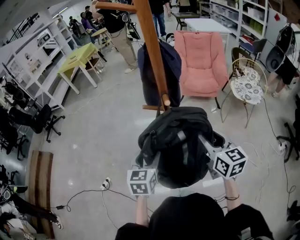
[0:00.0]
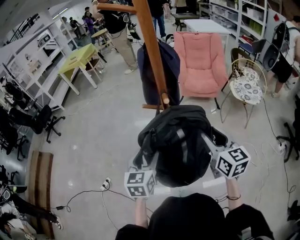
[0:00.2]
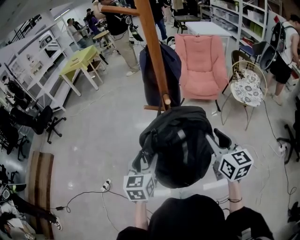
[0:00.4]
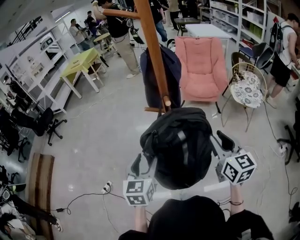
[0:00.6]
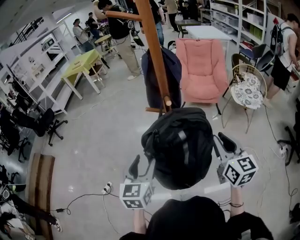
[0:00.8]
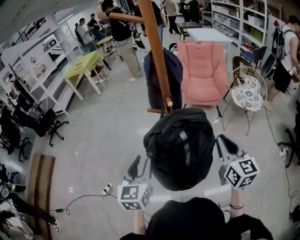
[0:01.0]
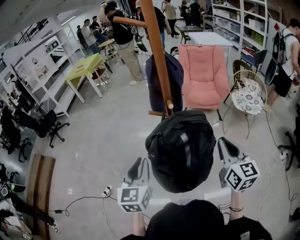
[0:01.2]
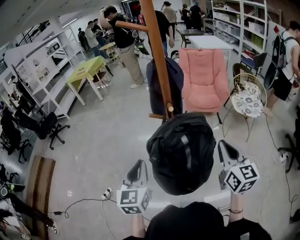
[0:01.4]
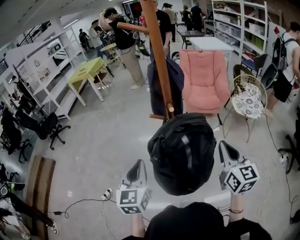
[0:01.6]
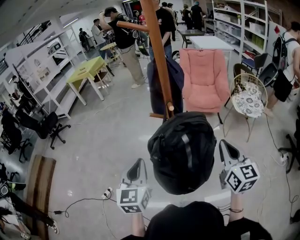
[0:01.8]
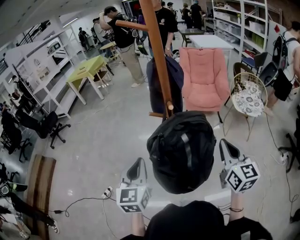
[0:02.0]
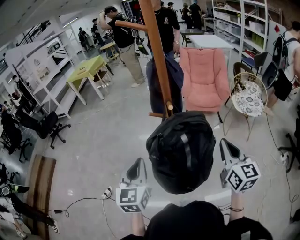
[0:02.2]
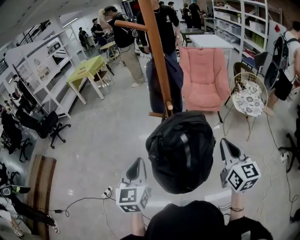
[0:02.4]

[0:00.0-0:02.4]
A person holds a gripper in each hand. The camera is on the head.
0.0 to 1.2 s: The left gripper heads upward and backward, covering approximately 10 cm, and closes up. The right gripper is displaced backward by about 5 cm, and closes its fingers.
1.2 to 2.4 s: The grippers stay close to where they were, moving slightly.

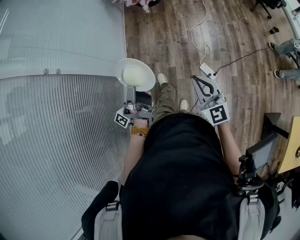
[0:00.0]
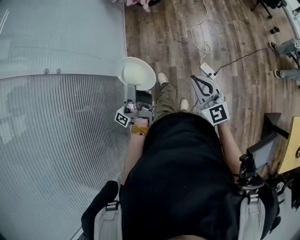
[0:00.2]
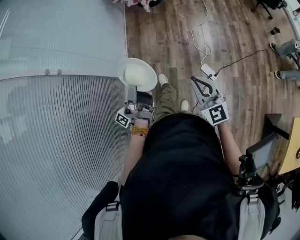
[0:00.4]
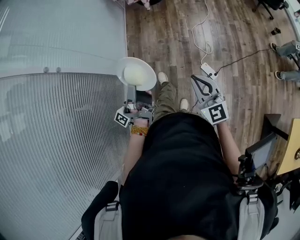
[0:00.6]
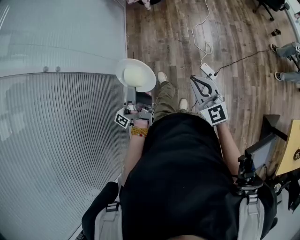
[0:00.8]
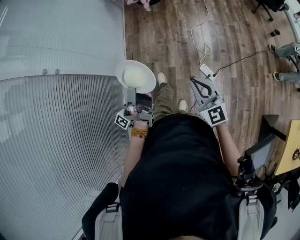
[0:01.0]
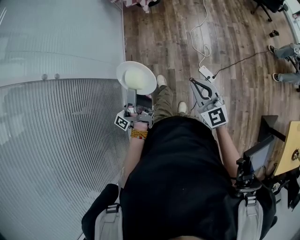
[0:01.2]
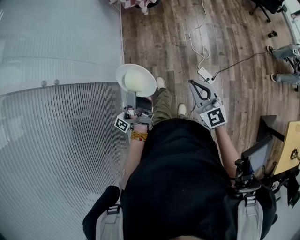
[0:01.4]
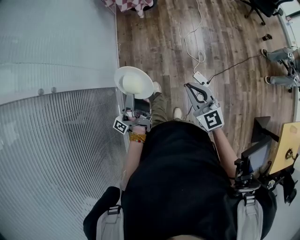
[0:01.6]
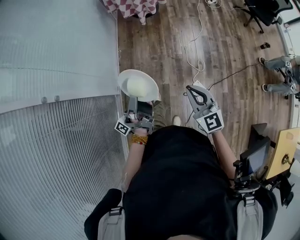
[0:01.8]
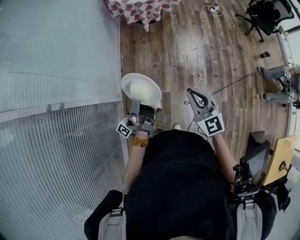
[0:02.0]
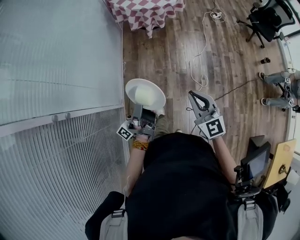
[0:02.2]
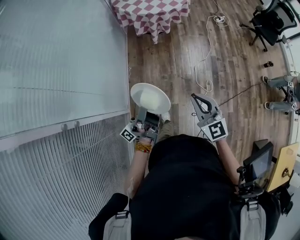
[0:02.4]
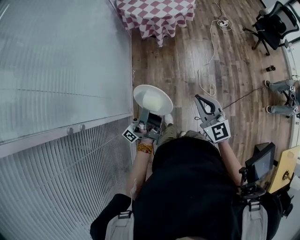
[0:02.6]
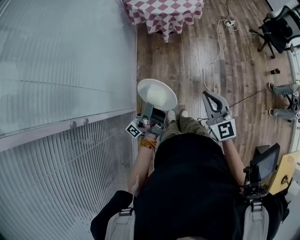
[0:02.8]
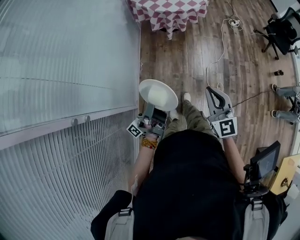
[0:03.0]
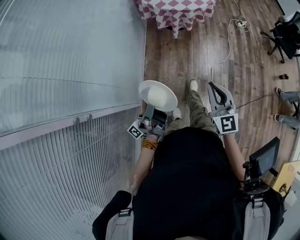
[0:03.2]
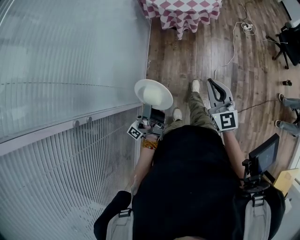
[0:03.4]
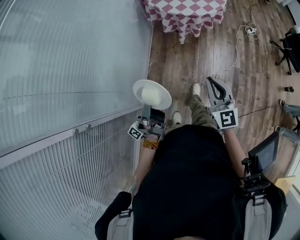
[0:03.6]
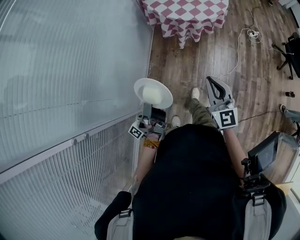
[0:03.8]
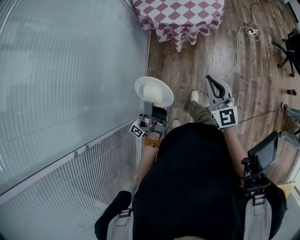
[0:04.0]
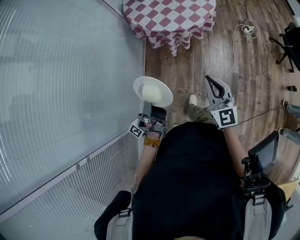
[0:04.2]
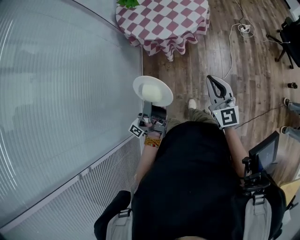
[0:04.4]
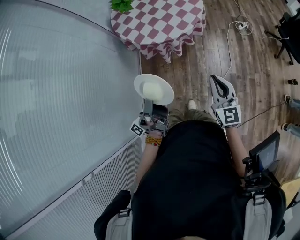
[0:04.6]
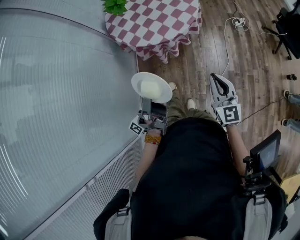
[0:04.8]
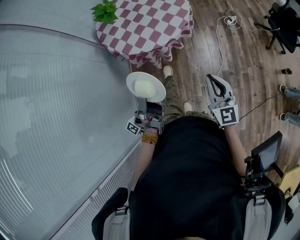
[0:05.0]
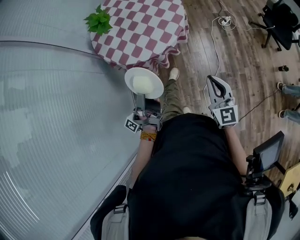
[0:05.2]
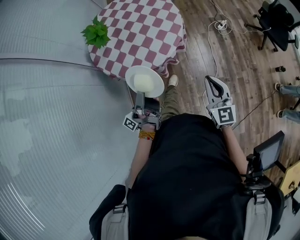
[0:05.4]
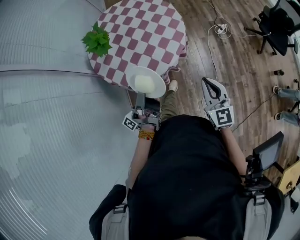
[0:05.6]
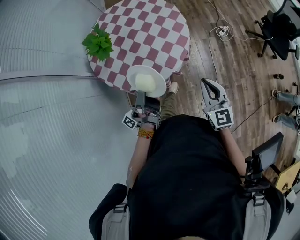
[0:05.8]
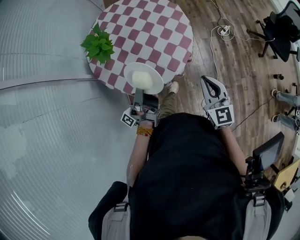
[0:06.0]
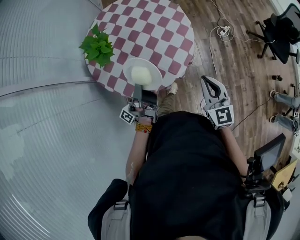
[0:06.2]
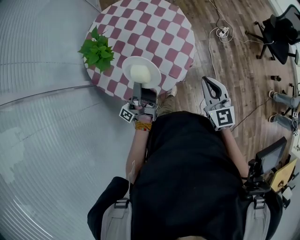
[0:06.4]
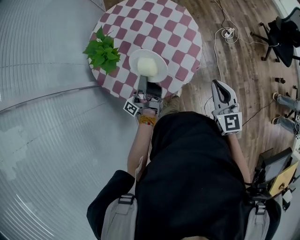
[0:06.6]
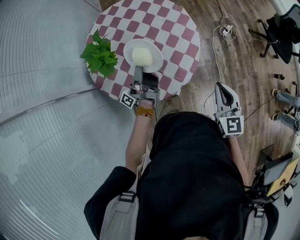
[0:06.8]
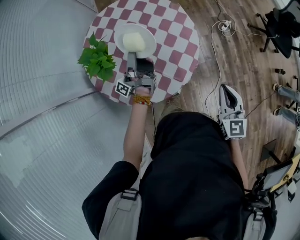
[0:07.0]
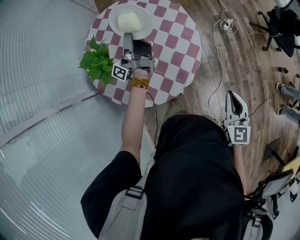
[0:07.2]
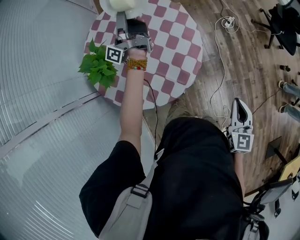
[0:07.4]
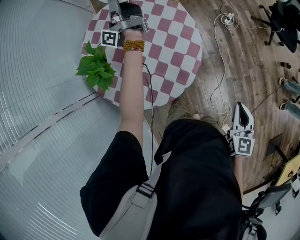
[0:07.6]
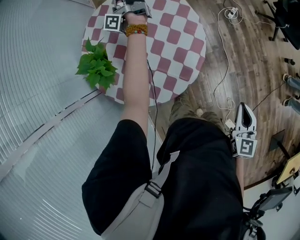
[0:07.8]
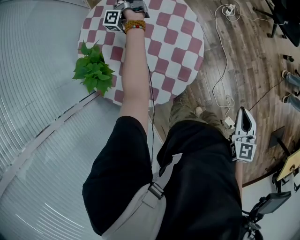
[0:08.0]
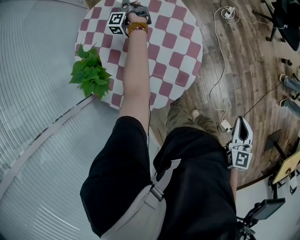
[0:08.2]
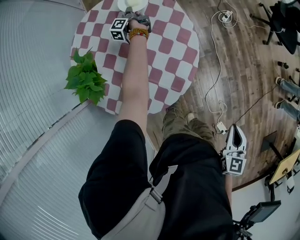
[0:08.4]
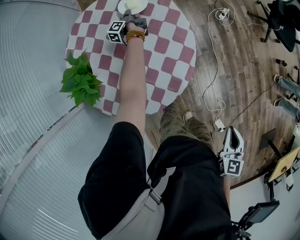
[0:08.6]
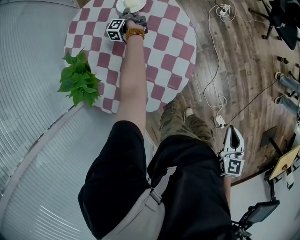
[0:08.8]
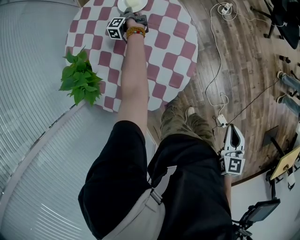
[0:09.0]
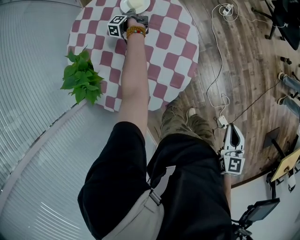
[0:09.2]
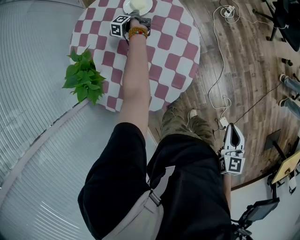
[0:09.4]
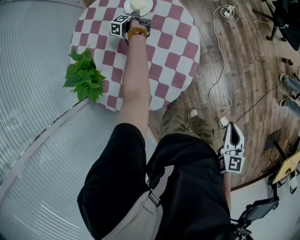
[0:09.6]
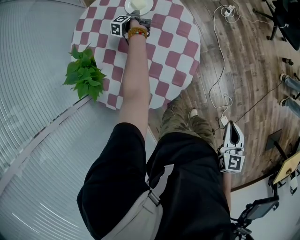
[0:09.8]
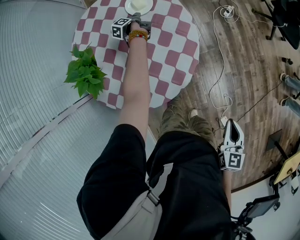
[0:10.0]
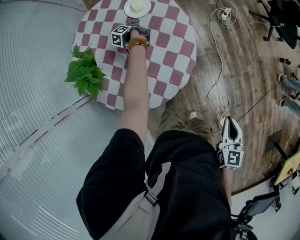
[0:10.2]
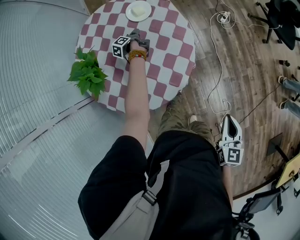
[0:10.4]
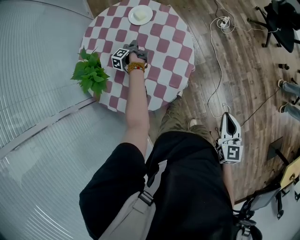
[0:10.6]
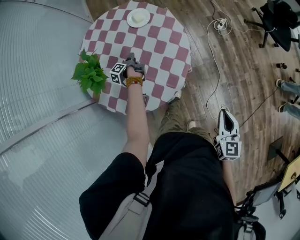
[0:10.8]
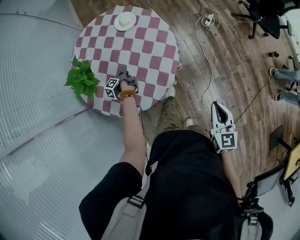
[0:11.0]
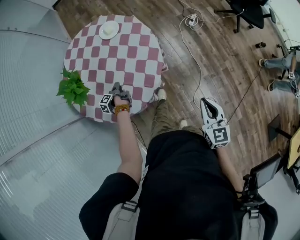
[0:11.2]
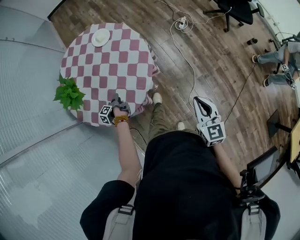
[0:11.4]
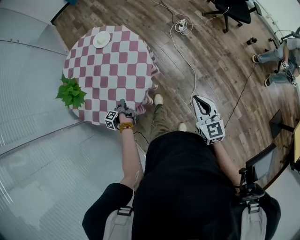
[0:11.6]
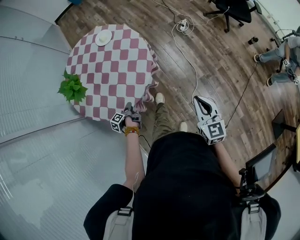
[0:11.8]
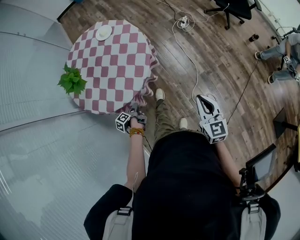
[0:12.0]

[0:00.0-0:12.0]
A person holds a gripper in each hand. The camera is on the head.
0.0 to 1.6 s: The right gripper changes place by some 15 cm.
1.6 to 3.0 s: The right gripper changes place by approximately 25 cm.
3.0 to 4.4 s: The right gripper shifts by roughly 40 cm.
4.4 to 6.0 s: The right gripper shifts by approximately 35 cm.
6.0 to 7.6 s: The right gripper shifts by roughly 10 cm, and rotates about 30 degrees.
7.6 to 9.0 s: The right gripper shifts by roughly 5 cm.
10.4 to 12.0 s: The right gripper changes place by roughly 20 cm.

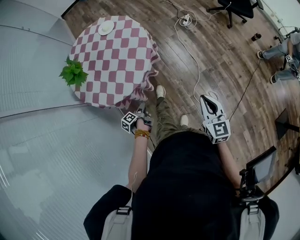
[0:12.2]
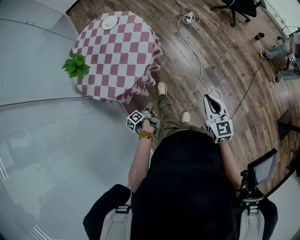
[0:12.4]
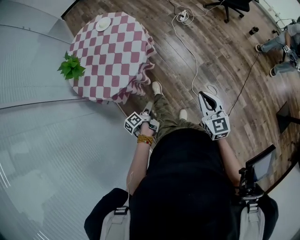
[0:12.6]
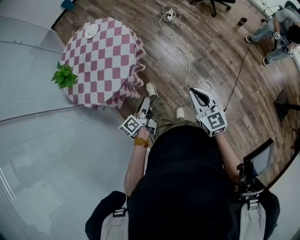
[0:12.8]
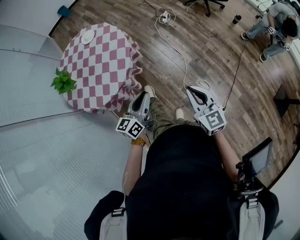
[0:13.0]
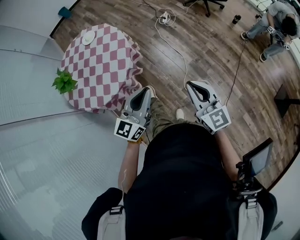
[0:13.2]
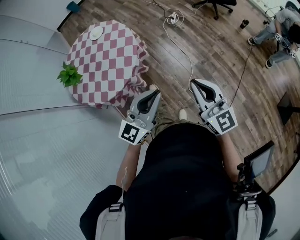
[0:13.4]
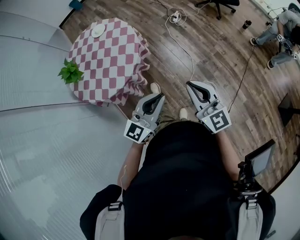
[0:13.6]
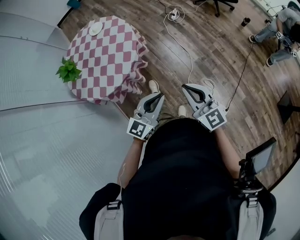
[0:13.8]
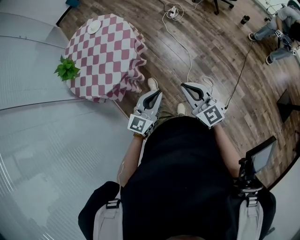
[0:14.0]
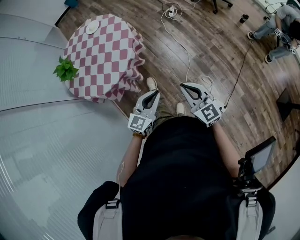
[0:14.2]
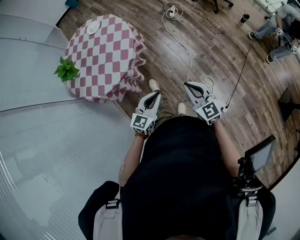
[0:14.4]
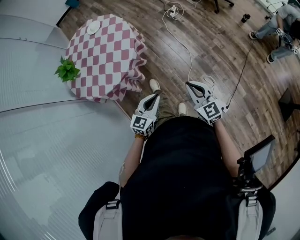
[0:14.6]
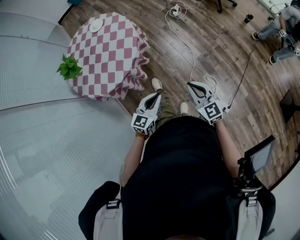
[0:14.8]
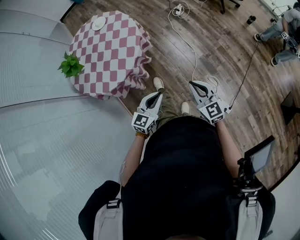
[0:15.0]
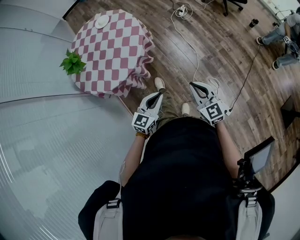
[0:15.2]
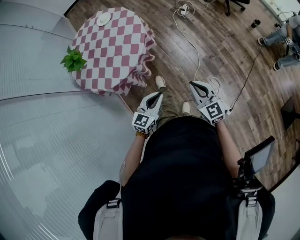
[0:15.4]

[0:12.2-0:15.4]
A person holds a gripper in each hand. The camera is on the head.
12.2 to 13.8 s: The right gripper ends up approximately 10 cm from where it was, and changes its angle by about 20 degrees.
13.8 to 15.4 s: The right gripper is displaced downward by roughly 10 cm.

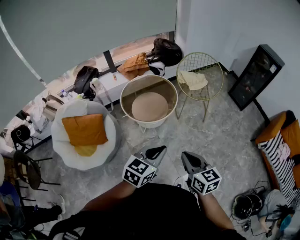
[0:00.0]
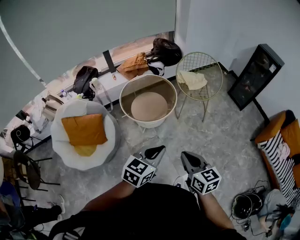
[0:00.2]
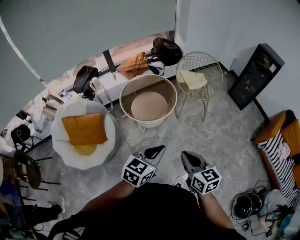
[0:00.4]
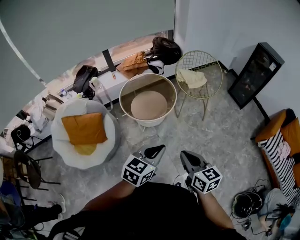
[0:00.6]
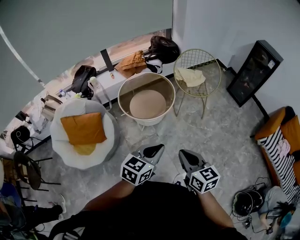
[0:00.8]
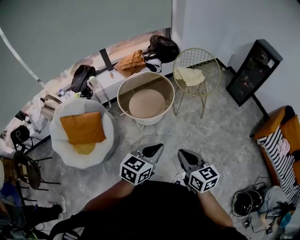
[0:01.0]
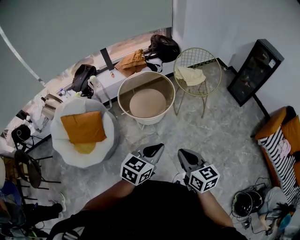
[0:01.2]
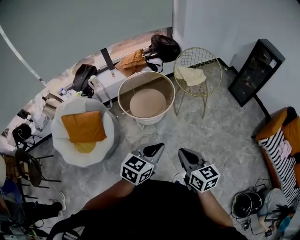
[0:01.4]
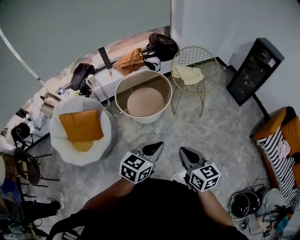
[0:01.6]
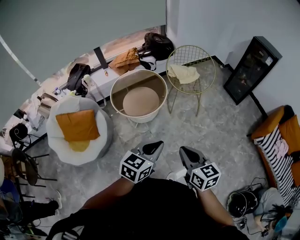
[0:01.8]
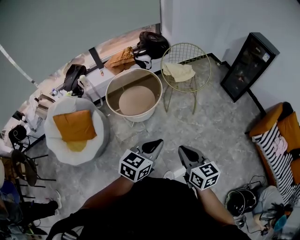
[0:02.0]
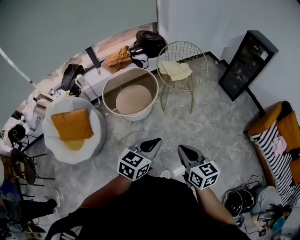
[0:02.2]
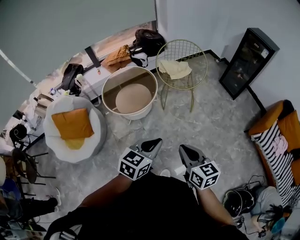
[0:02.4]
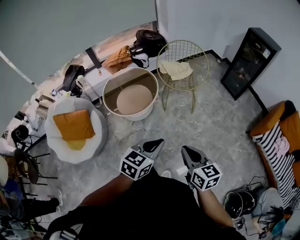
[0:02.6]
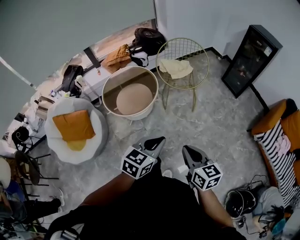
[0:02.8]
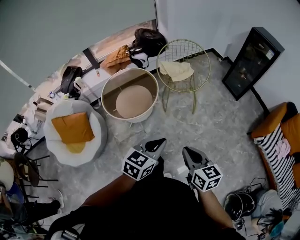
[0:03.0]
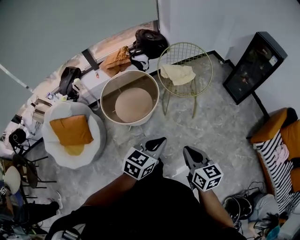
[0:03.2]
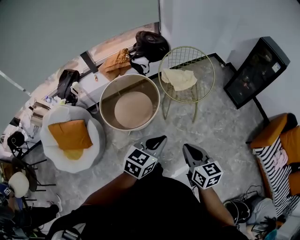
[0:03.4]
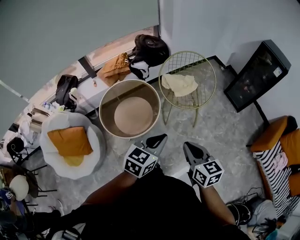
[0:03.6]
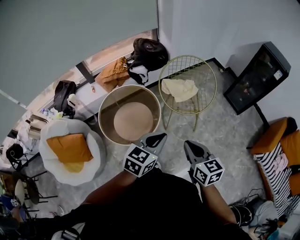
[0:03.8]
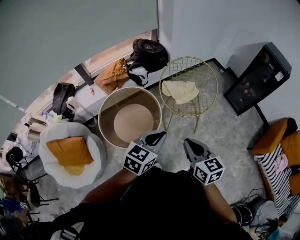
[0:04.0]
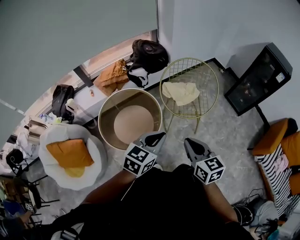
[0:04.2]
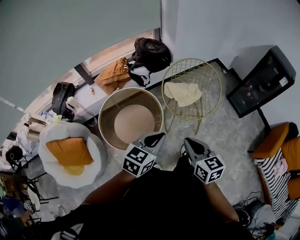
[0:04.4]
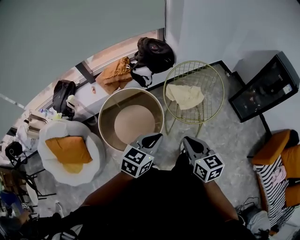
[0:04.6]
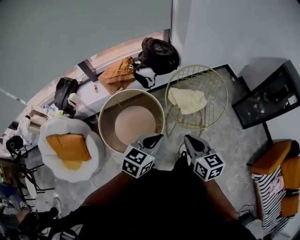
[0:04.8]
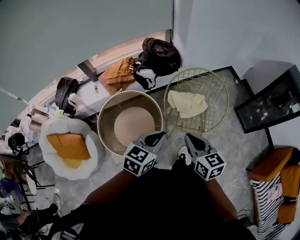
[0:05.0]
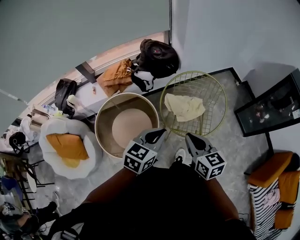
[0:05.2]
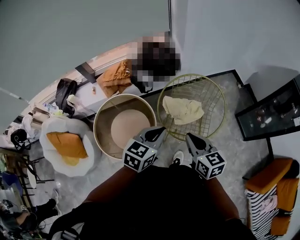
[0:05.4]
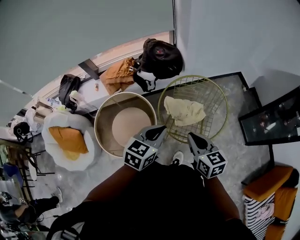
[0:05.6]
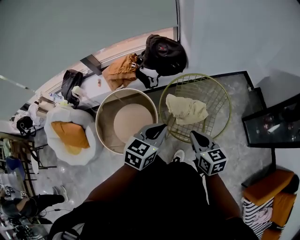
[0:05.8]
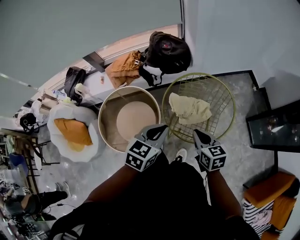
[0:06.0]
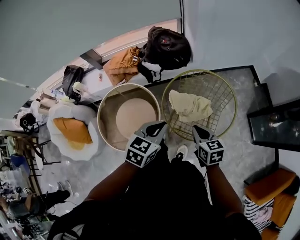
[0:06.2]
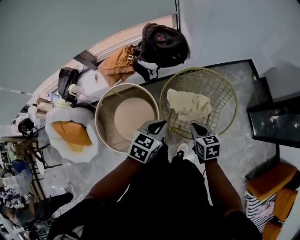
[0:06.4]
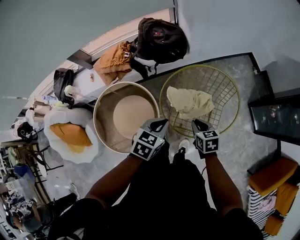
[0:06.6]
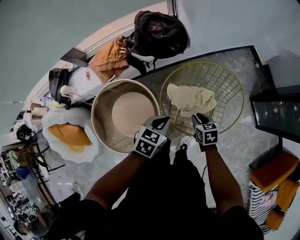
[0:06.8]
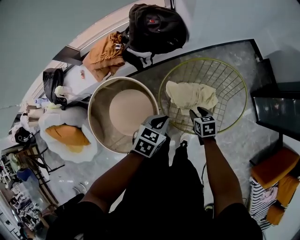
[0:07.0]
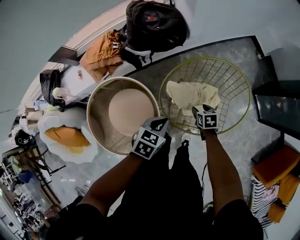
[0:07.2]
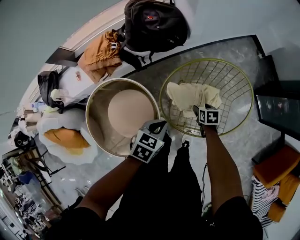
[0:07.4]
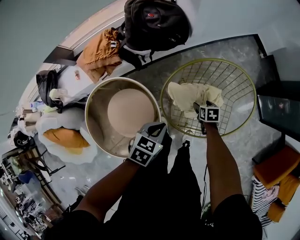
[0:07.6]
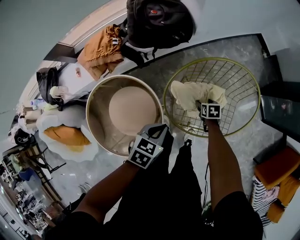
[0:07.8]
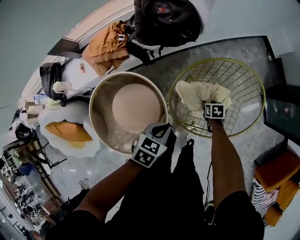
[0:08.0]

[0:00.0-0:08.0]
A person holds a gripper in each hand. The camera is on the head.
0.0 to 1.6 s: The two grippers go some 5 cm to the right.
1.6 to 3.2 s: Both grippers travel together forward and to the right, roughly 20 cm.
3.2 to 4.8 s: The grippers both shift forward by roughly 35 cm.
4.8 to 6.4 s: The right gripper is displaced forward, downward and to the right by roughly 30 cm, and swivels roughly 20 degrees, while the left gripper heads forward and to the right, covering roughly 25 cm.
6.4 to 8.0 s: The left gripper is displaced downward and to the left by approximately 20 cm. The right gripper heads downward, covering some 30 cm, changes its angle by approximately 30 degrees, and opens up.
